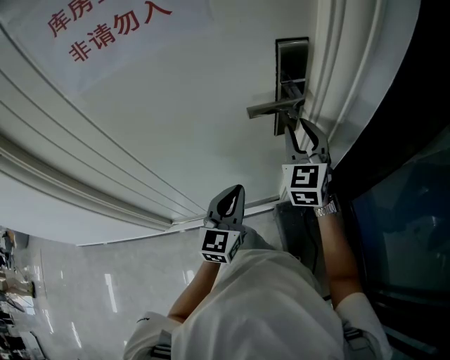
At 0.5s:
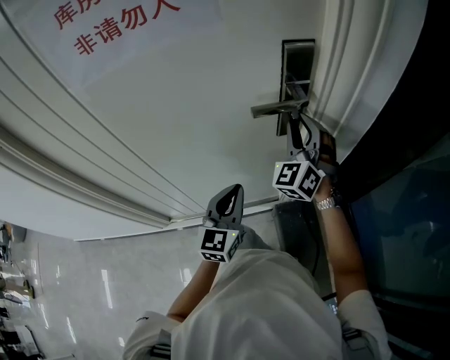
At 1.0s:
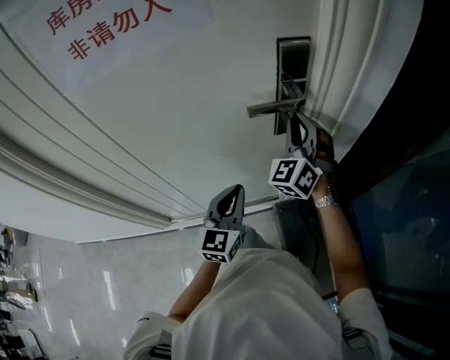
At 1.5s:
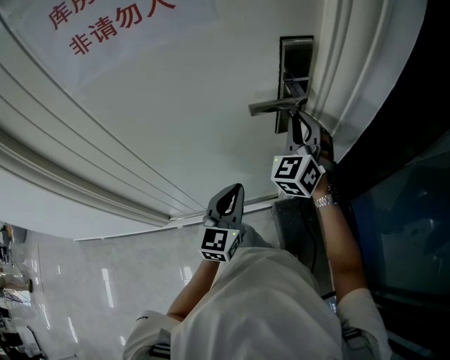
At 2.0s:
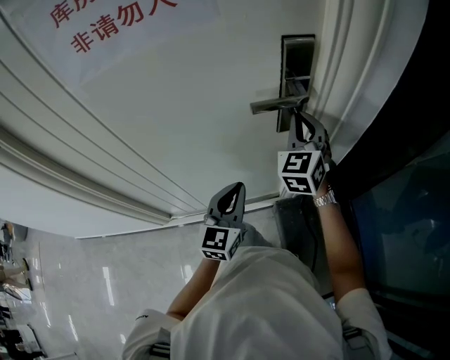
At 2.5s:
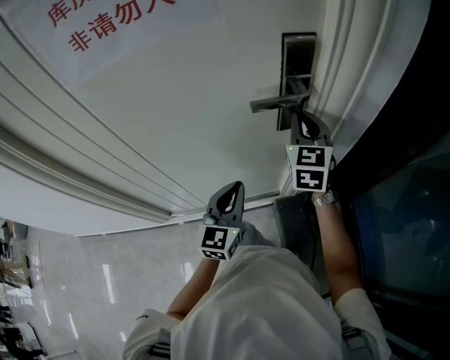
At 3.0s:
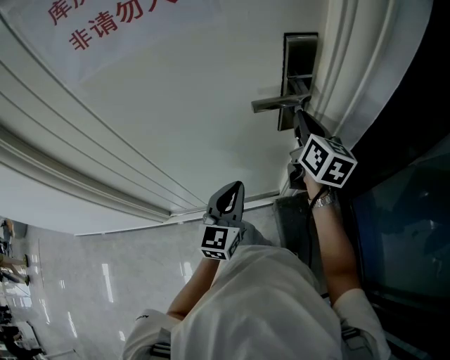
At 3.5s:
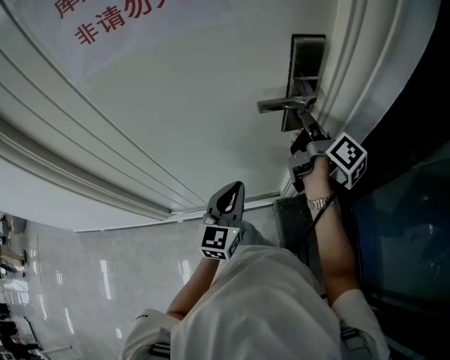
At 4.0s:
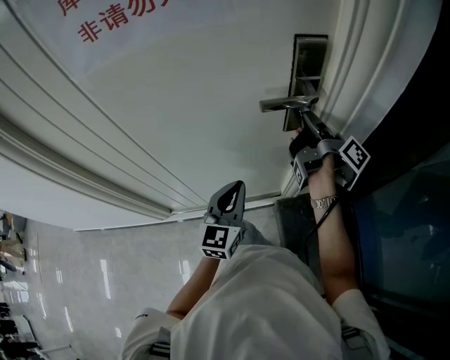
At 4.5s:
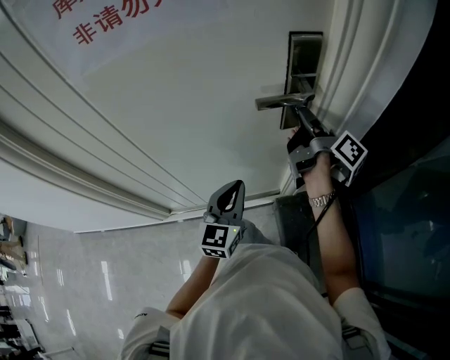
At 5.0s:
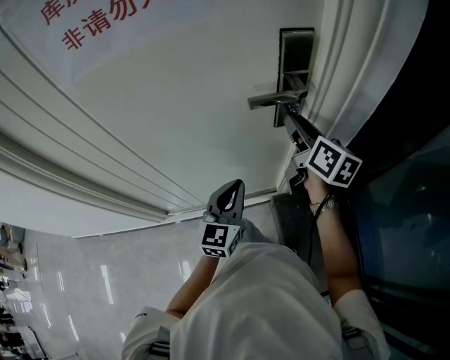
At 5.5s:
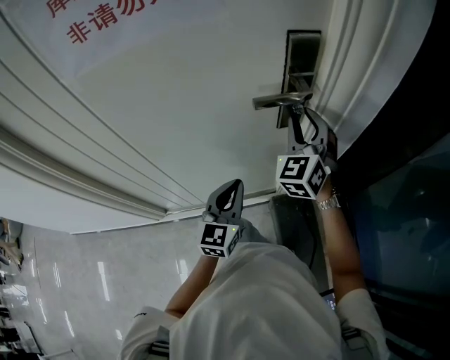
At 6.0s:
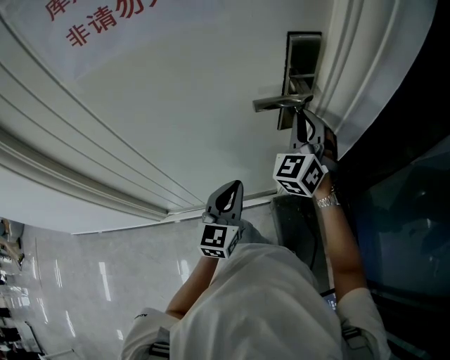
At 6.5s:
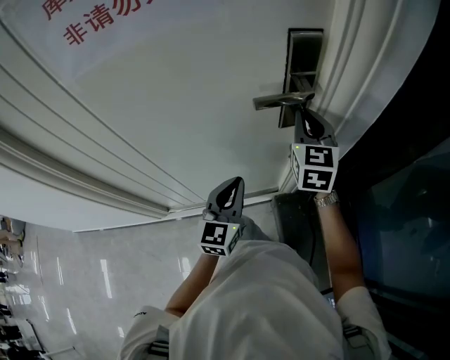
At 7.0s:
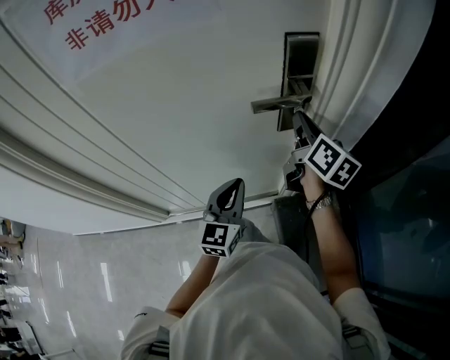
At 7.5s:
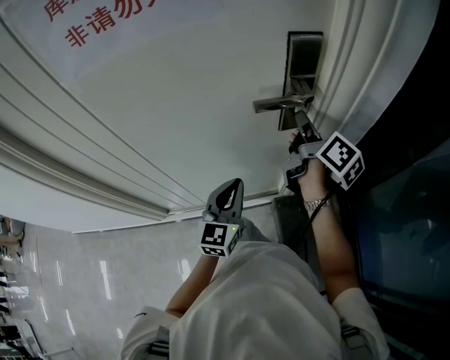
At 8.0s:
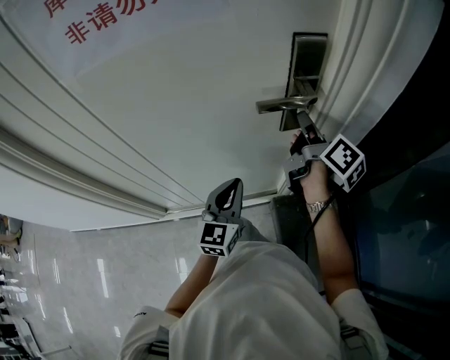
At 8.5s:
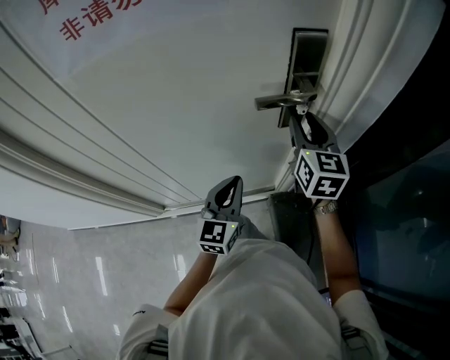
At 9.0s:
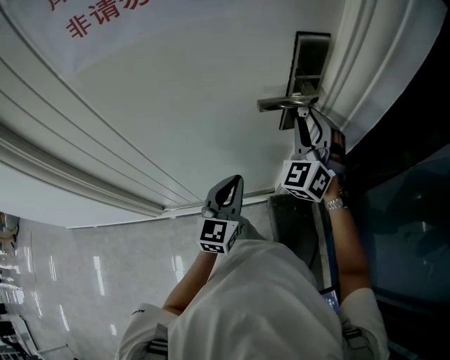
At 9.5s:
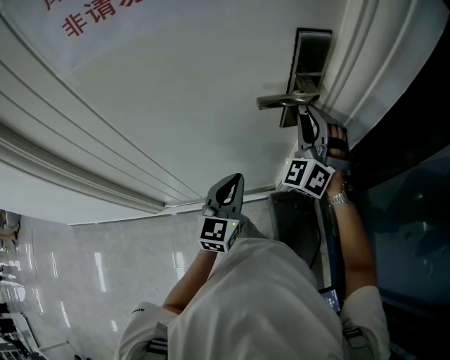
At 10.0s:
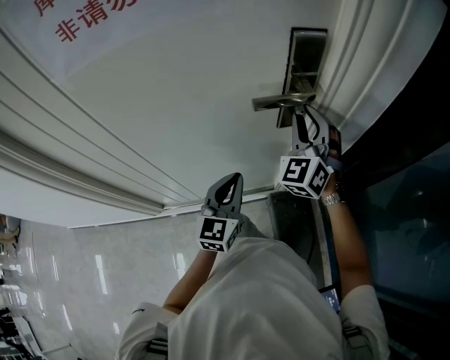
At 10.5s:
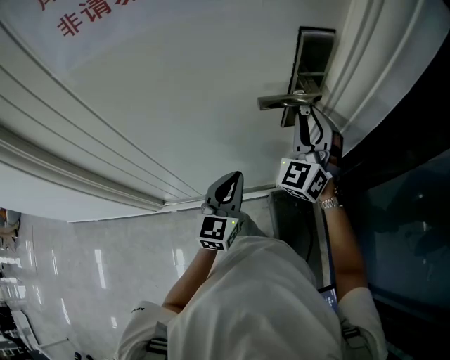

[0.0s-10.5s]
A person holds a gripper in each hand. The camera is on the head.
0.0s to 2.0s: The right gripper closes its fingers.
2.0s to 4.0s: The right gripper twists approximately 120 degrees clockwise, seen from behind.
4.0s to 6.5s: The right gripper rotates around the line of its fingers by approximately 100 degrees, counterclockwise from behind, and opens, then closes again.
6.5s to 8.5s: The right gripper opens its fingers.
8.5s to 10.5s: The right gripper rolls counterclockwise, seen from behind, by some 50 degrees.

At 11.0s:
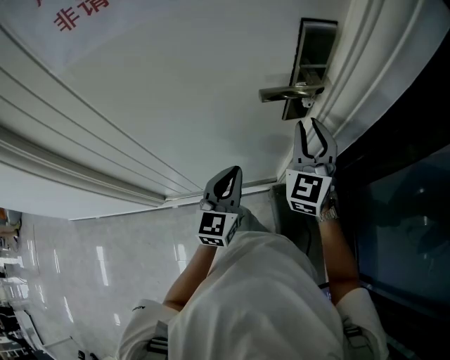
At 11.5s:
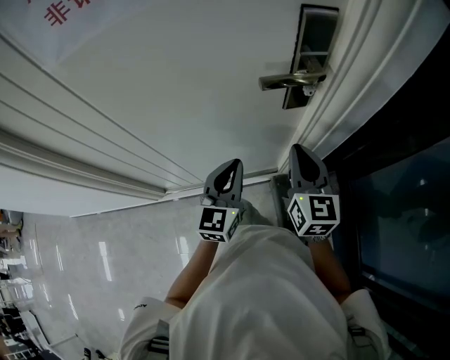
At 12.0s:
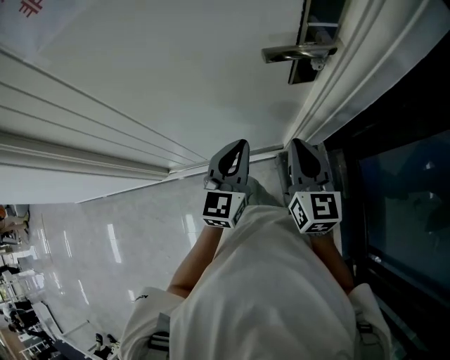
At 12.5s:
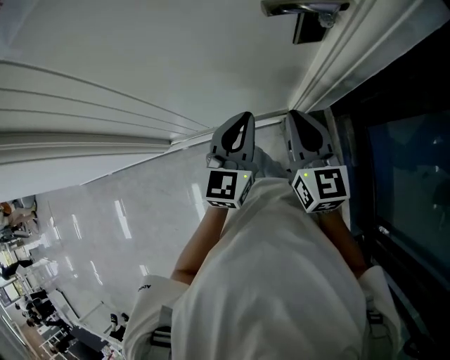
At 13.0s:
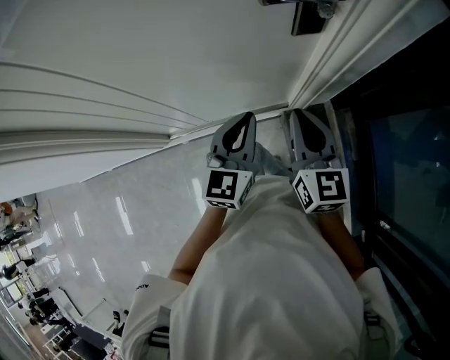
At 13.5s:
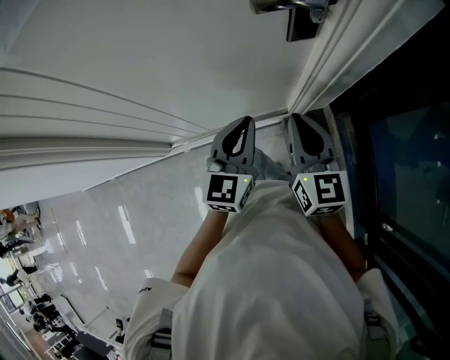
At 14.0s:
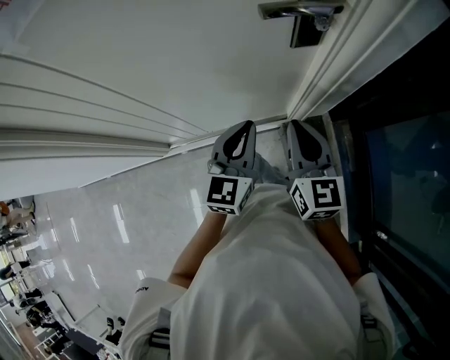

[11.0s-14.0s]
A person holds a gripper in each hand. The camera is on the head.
11.0s to 12.5s: The right gripper shifts some 15 cm backward and downward, changes its angle by approximately 40 degrees, and closes its fingers.
12.5s to 14.0s: The grippers move only a little.

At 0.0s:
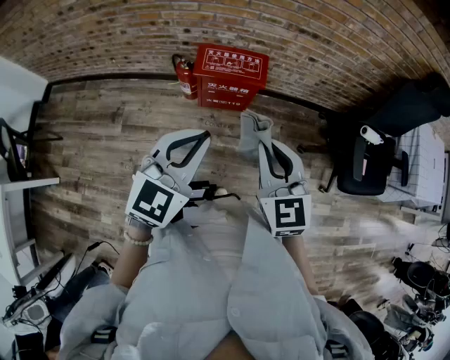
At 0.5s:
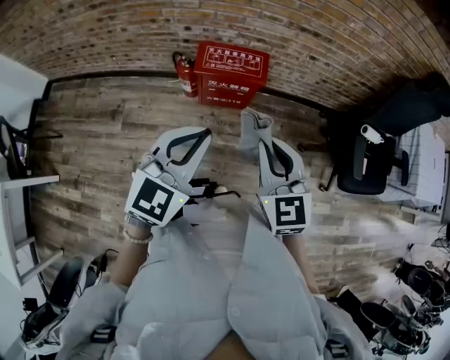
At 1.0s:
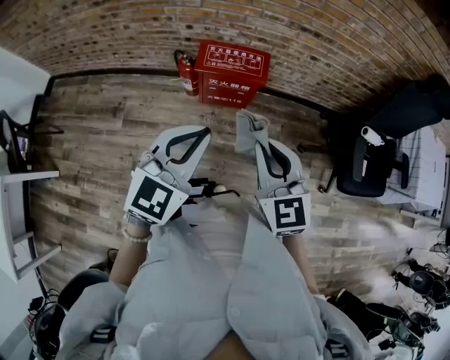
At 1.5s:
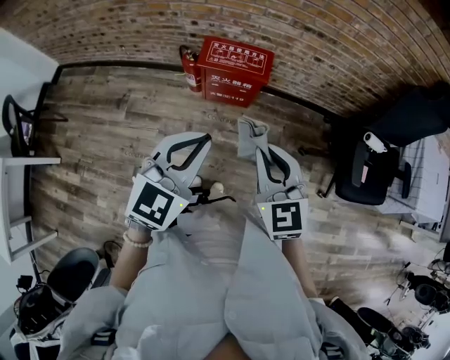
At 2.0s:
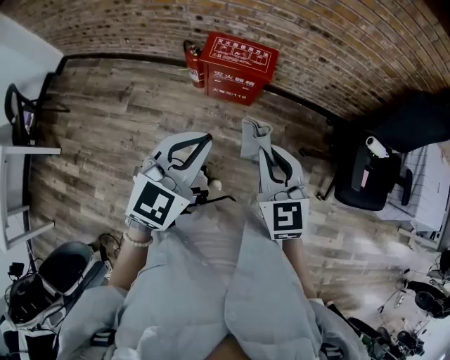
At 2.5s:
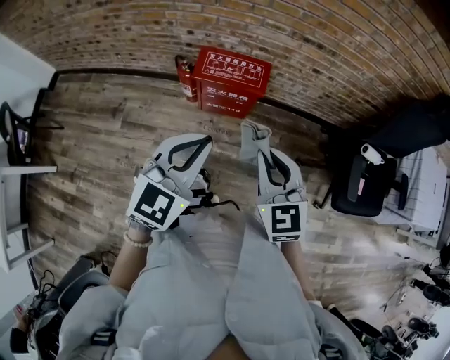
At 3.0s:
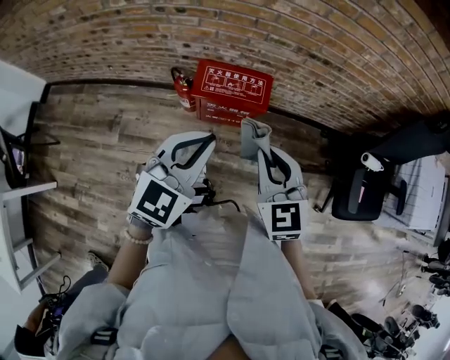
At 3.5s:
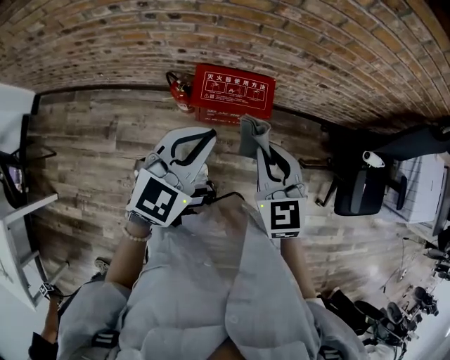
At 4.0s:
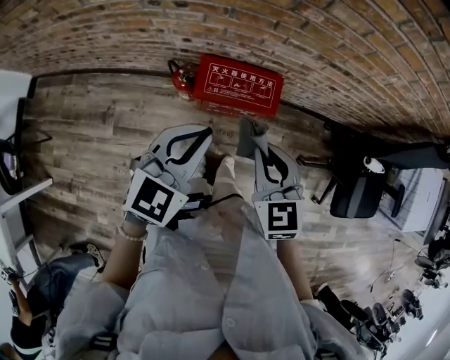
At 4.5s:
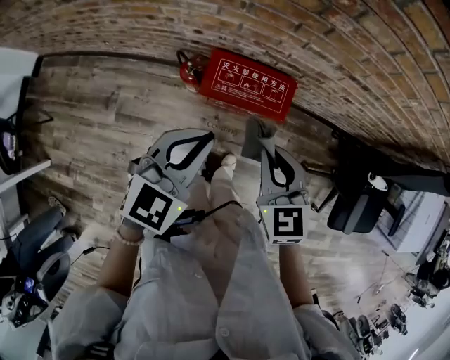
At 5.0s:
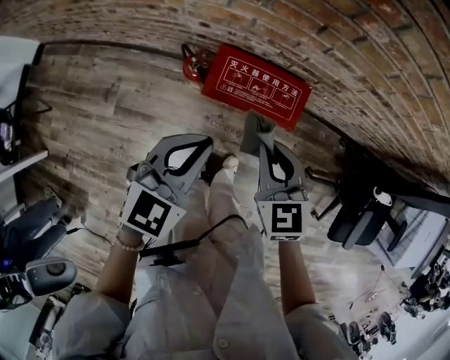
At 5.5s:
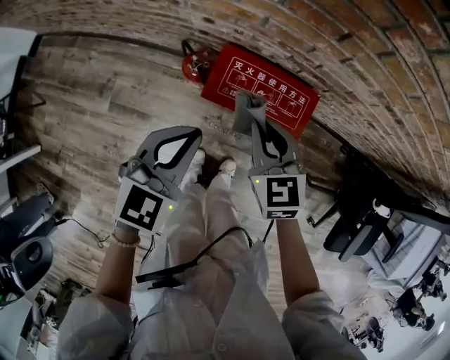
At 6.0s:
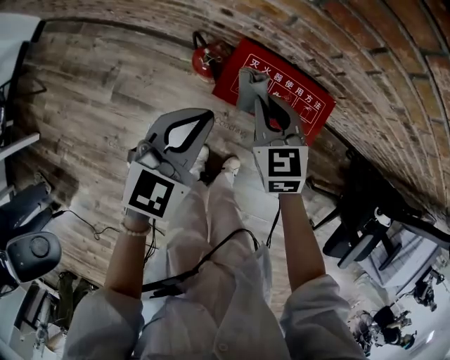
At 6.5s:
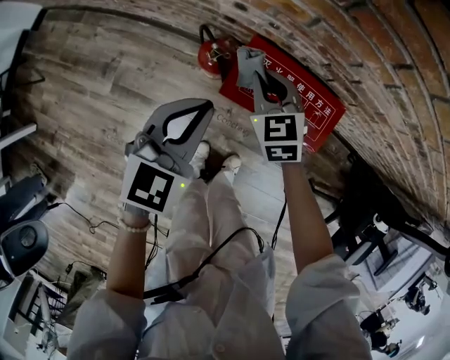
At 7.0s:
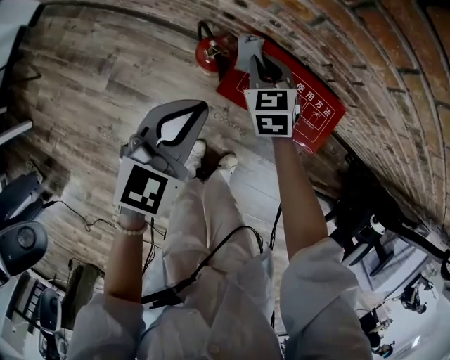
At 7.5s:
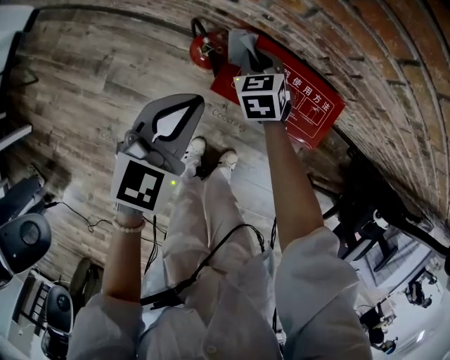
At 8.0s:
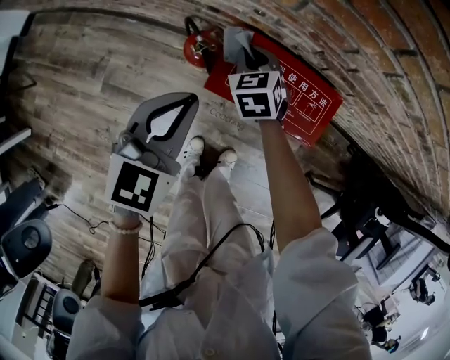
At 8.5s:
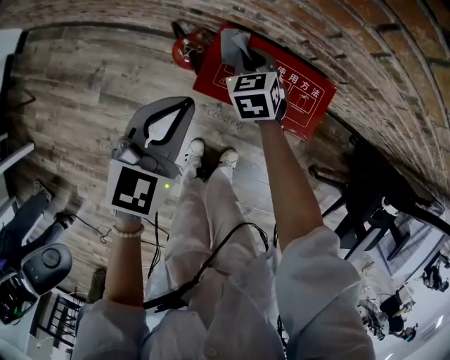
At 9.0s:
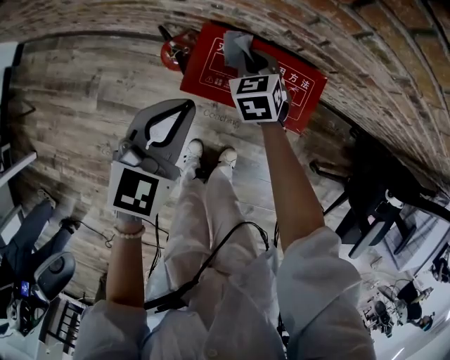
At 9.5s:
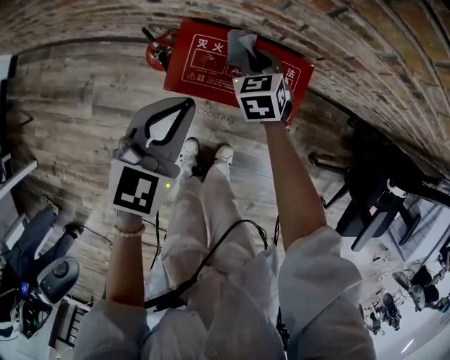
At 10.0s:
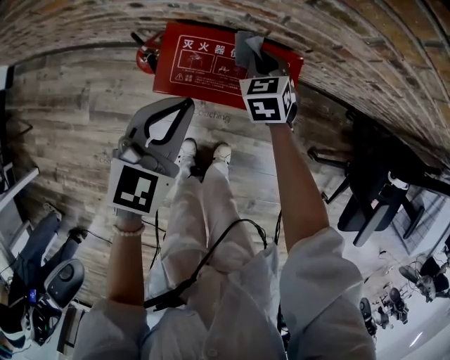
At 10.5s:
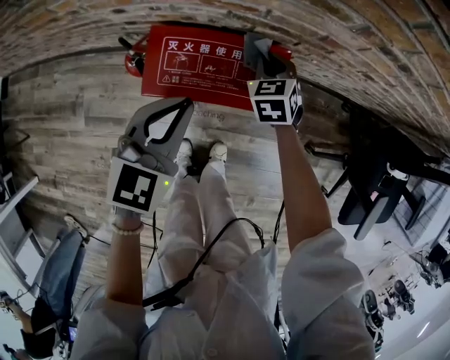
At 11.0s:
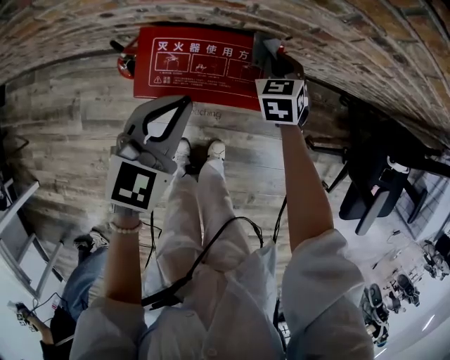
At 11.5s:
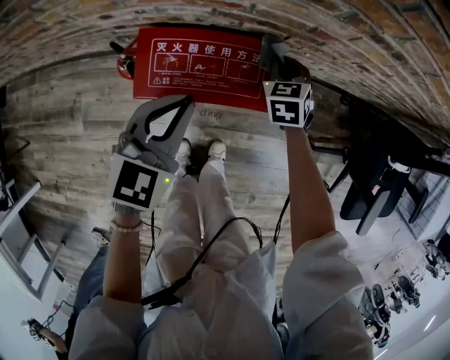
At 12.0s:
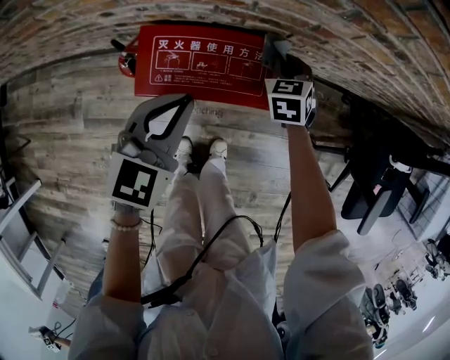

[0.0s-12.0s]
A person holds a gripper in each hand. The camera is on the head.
0.0s to 2.0s: The two grippers go approximately 5 cm to the right.
2.0s to 4.0s: Both grippers move forward and to the left, about 30 cm.
4.0s to 6.0s: The left gripper travels downward and forward by some 20 cm. Meanwhile the right gripper moves downward, forward and to the left, about 30 cm.
6.0s to 8.0s: The right gripper heads downward and forward, covering approximately 15 cm; the left gripper shifts by approximately 5 cm.
8.0s to 10.0s: The right gripper heads to the right, covering some 20 cm; the left gripper travels to the right by approximately 10 cm.
10.0s to 12.0s: The right gripper goes about 10 cm to the right.

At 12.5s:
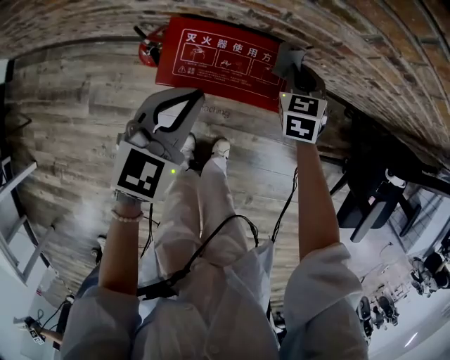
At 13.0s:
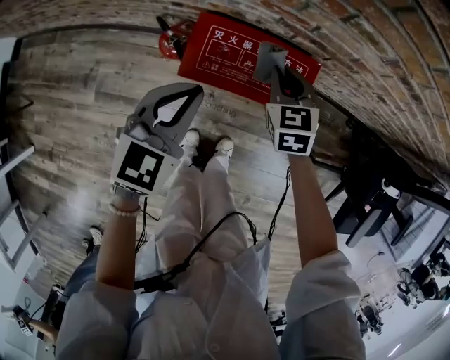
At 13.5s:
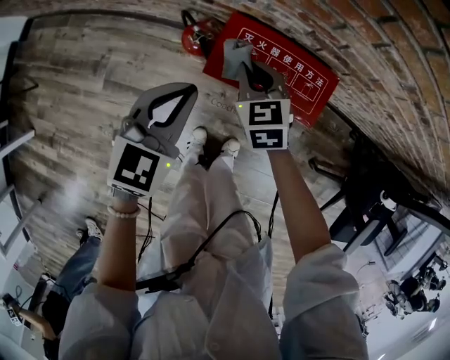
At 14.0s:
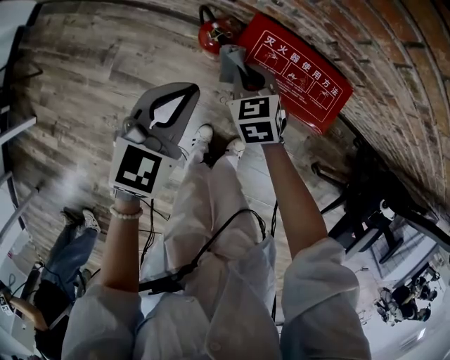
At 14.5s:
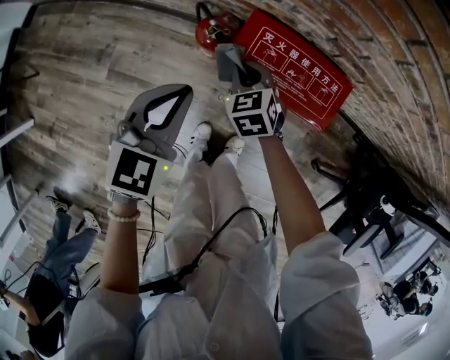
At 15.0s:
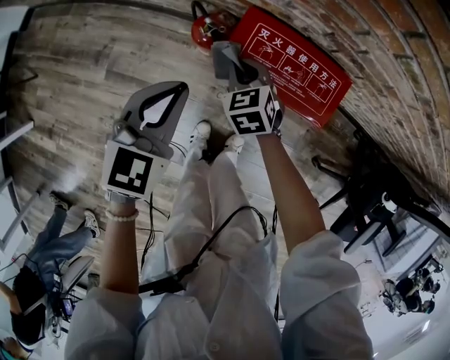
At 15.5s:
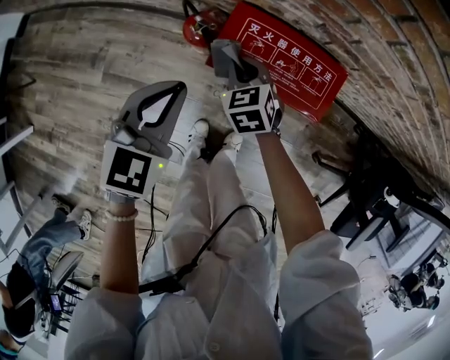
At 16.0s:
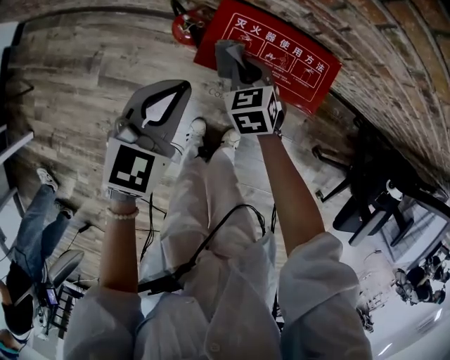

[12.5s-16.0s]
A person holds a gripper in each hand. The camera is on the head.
12.5s to 14.5s: The left gripper shifts by about 20 cm, while the right gripper changes place by approximately 30 cm, and changes its angle by approximately 30 degrees.
14.5s to 16.0s: The grippers both shift to the right by about 5 cm.
